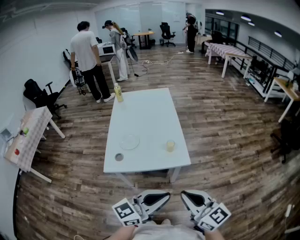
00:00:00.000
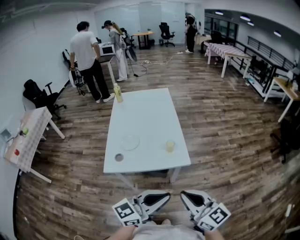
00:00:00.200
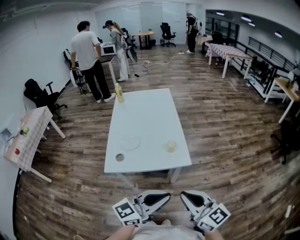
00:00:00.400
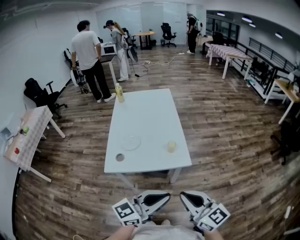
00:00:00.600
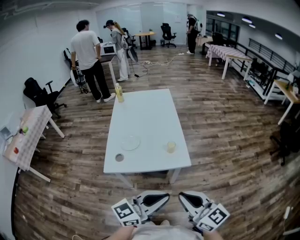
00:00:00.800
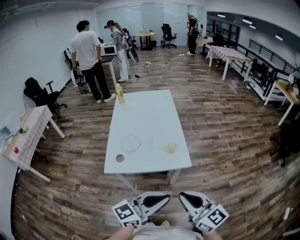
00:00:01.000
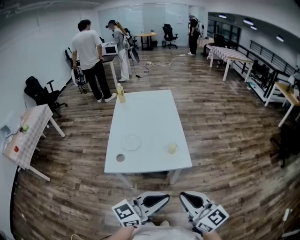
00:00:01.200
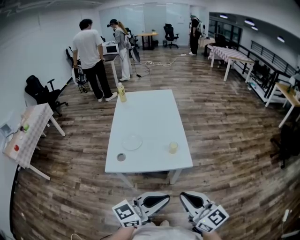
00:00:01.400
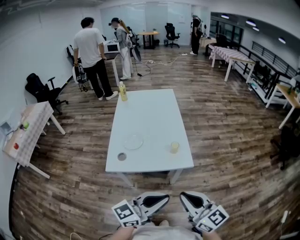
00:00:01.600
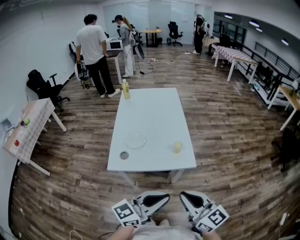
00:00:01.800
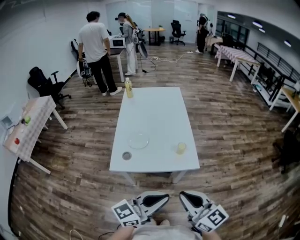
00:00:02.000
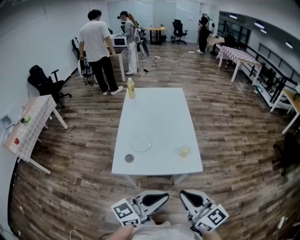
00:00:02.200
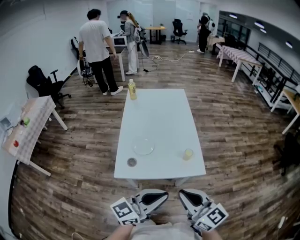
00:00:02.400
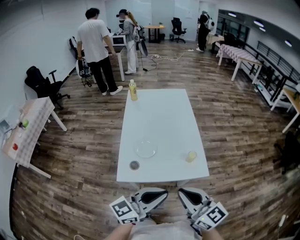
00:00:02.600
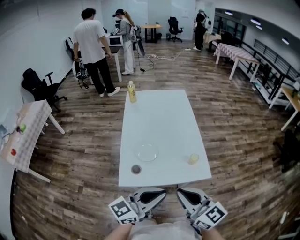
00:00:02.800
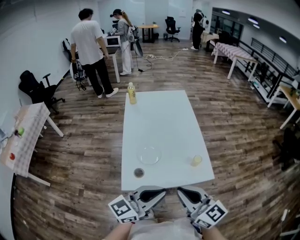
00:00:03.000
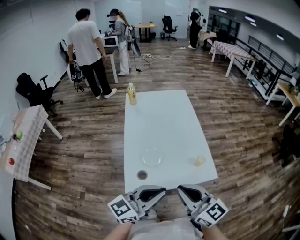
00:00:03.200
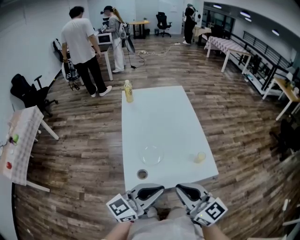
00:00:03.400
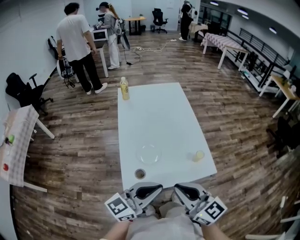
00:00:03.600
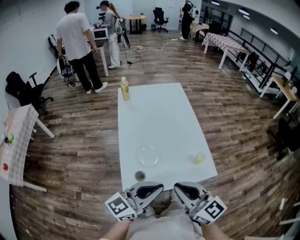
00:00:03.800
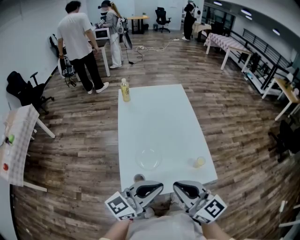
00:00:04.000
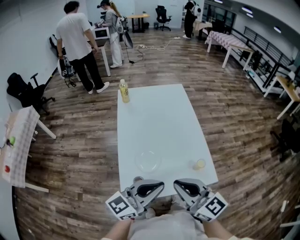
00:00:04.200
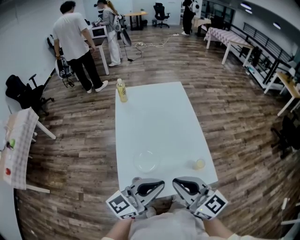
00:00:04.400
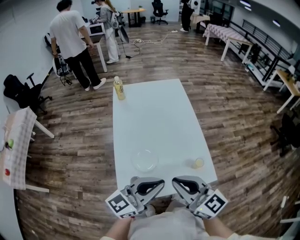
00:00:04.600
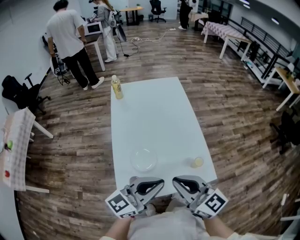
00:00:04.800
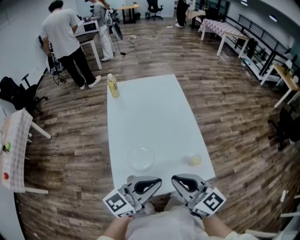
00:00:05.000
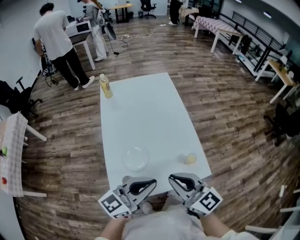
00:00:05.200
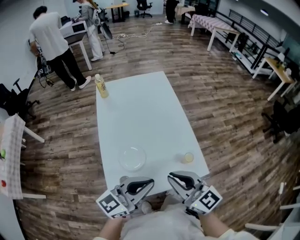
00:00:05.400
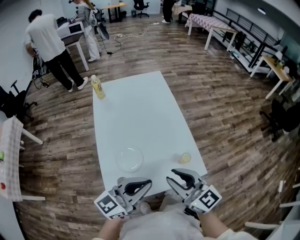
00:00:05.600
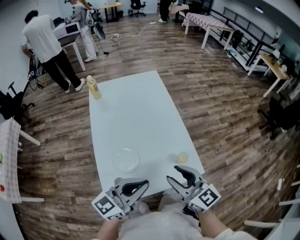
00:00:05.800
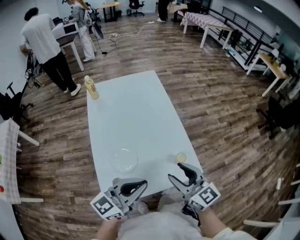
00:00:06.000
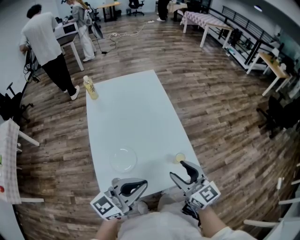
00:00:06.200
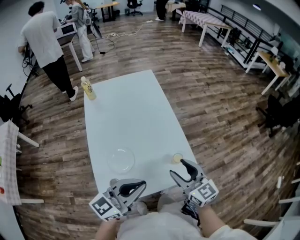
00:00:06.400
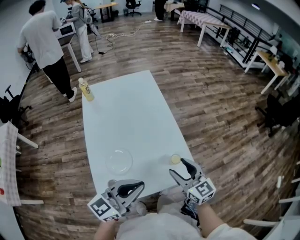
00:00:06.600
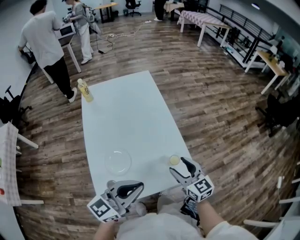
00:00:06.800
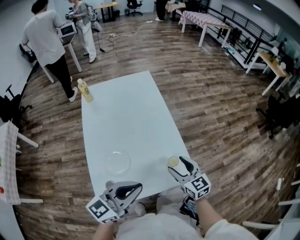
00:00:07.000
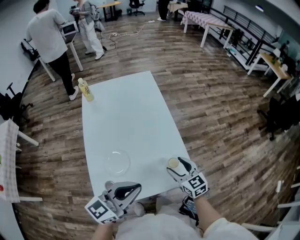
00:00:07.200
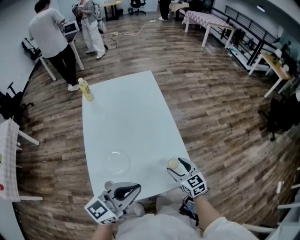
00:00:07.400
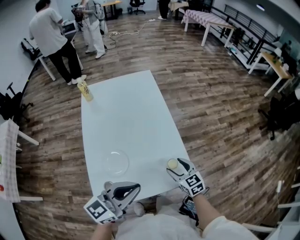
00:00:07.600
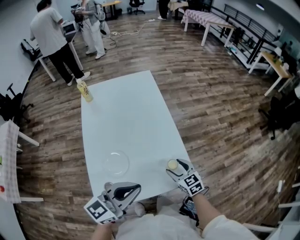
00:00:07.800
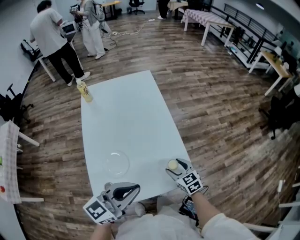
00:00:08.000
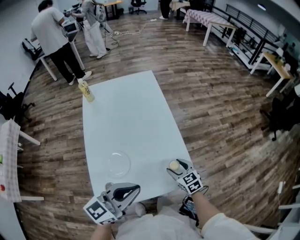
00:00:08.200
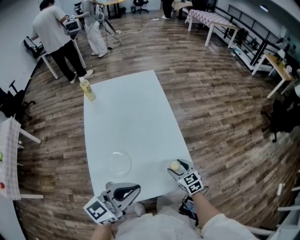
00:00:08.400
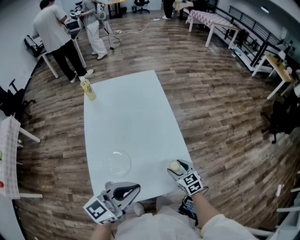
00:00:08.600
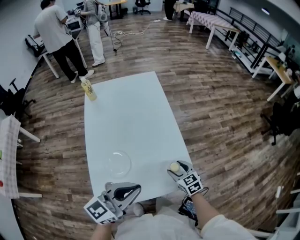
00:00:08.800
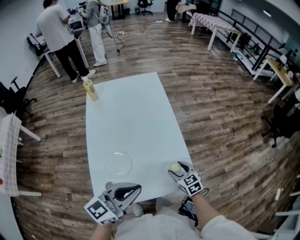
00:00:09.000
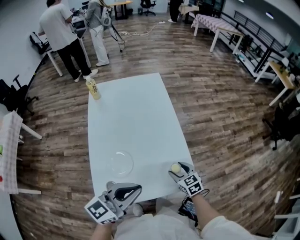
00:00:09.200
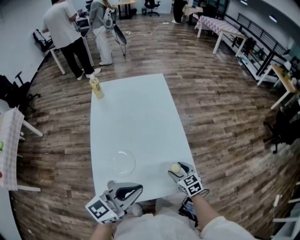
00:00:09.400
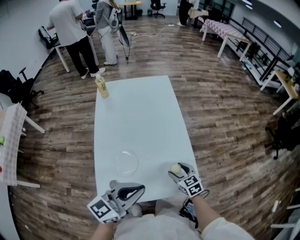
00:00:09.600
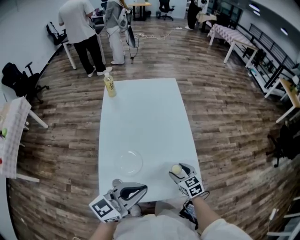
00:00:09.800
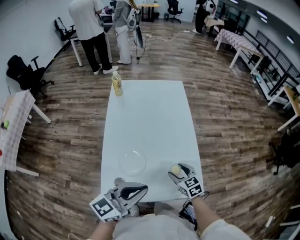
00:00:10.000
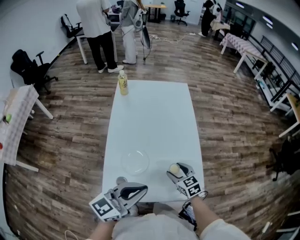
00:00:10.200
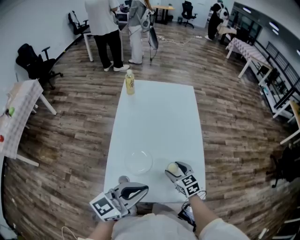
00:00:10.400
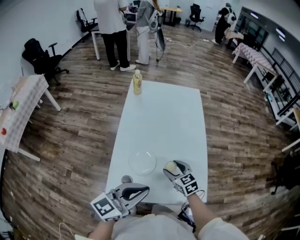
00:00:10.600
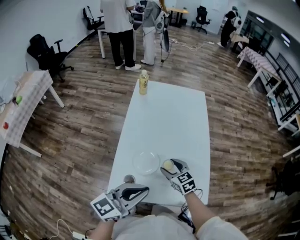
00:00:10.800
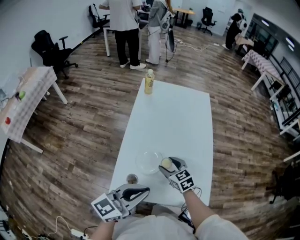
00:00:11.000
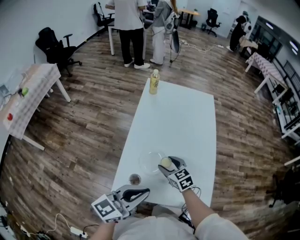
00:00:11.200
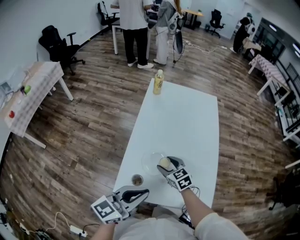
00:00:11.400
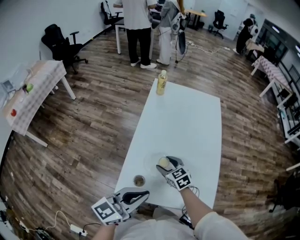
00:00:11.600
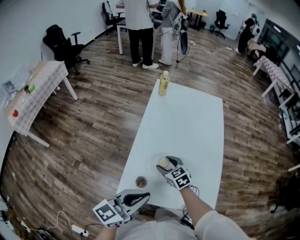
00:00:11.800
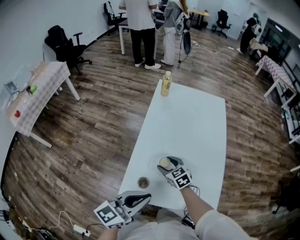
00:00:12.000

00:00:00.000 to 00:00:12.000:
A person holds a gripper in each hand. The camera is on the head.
00:00:00.000 to 00:00:01.600: The grippers move only a little.
00:00:01.600 to 00:00:03.000: The grippers both shift to the left and forward by roughly 20 cm.
00:00:03.000 to 00:00:04.400: The grippers both shift forward by roughly 10 cm.
00:00:04.400 to 00:00:06.000: The right gripper is displaced to the right, downward and forward by about 10 cm, and opens.
00:00:06.000 to 00:00:07.600: The right gripper heads downward and forward, covering about 20 cm, and turns by approximately 20 degrees.
00:00:07.600 to 00:00:09.000: The grippers make only small movements.
00:00:09.000 to 00:00:10.400: The right gripper shifts some 10 cm to the left.
00:00:10.400 to 00:00:12.000: The right gripper is displaced to the left by roughly 20 cm; the left gripper goes some 10 cm to the left.

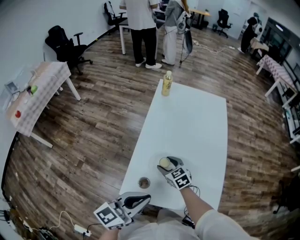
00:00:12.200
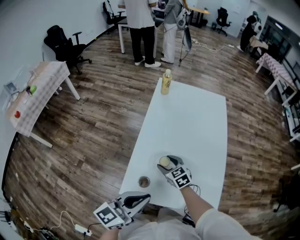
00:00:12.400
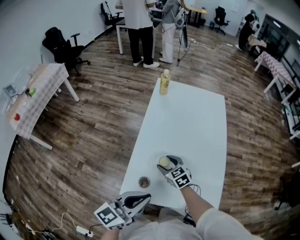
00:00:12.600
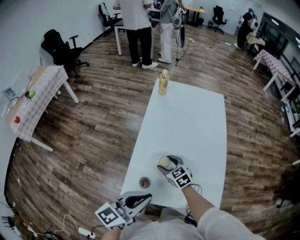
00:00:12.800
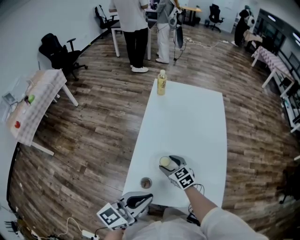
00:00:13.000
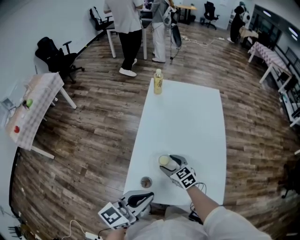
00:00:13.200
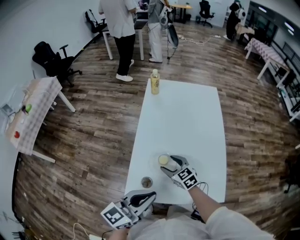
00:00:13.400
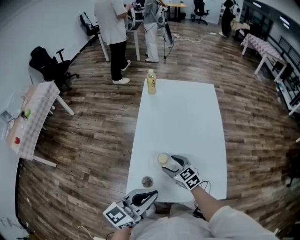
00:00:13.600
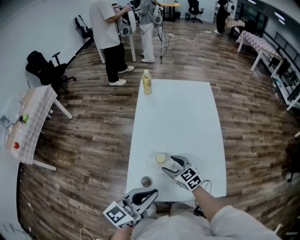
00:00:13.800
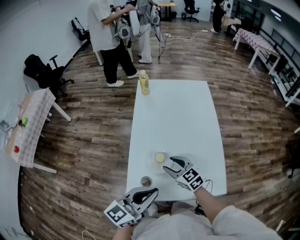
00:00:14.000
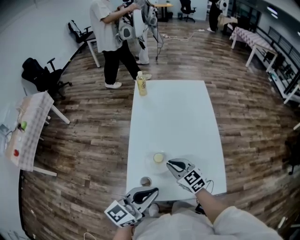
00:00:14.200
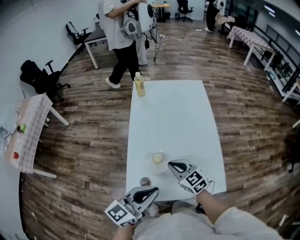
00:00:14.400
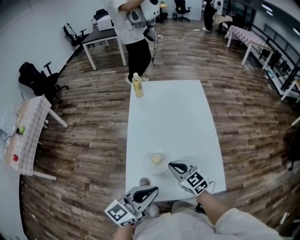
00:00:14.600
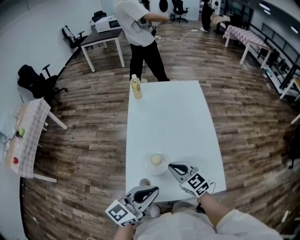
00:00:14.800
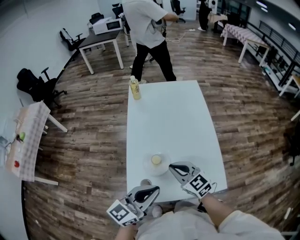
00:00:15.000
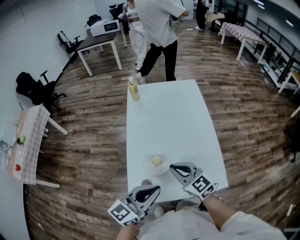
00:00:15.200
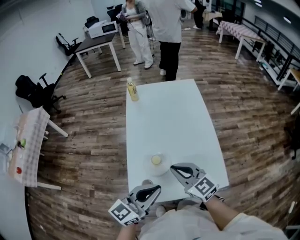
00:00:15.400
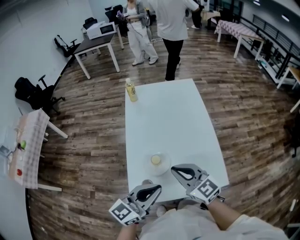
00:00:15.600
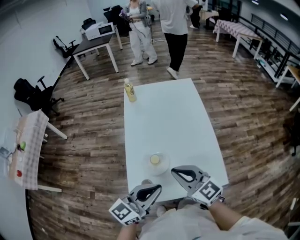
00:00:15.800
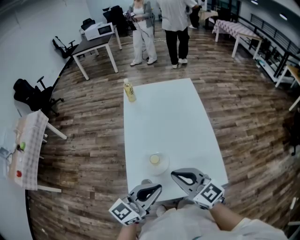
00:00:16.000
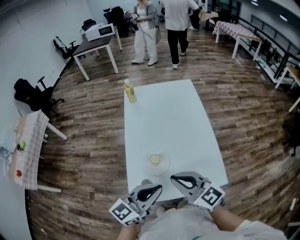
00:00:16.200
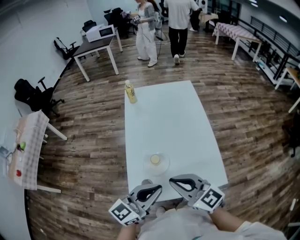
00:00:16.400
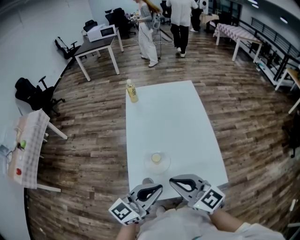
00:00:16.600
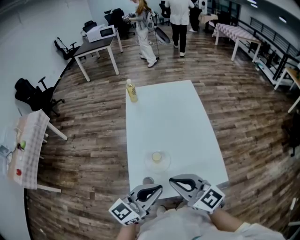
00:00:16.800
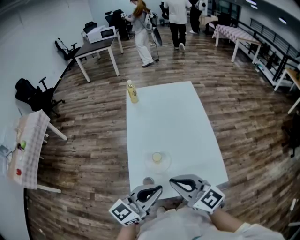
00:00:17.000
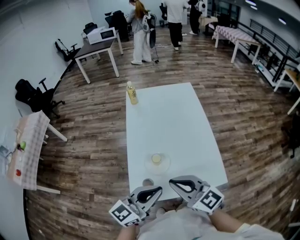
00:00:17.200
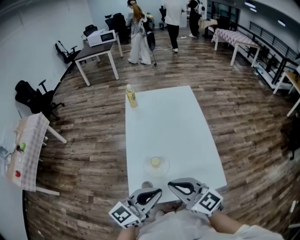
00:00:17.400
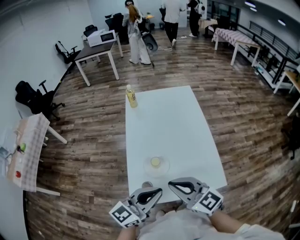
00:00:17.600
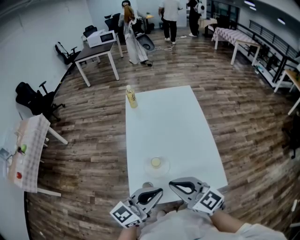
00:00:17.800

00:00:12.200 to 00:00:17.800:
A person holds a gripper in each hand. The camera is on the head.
00:00:12.200 to 00:00:13.600: The right gripper shifts by about 5 cm.
00:00:13.600 to 00:00:15.000: The right gripper travels upward by approximately 10 cm, and closes.
00:00:15.000 to 00:00:16.400: The right gripper heads upward and backward, covering roughly 15 cm.
00:00:16.400 to 00:00:17.800: The grippers make only small movements.

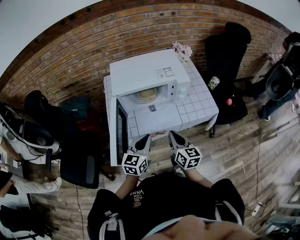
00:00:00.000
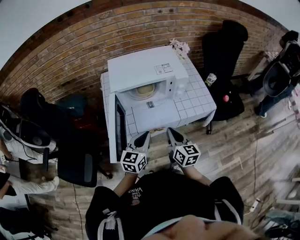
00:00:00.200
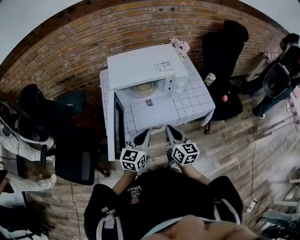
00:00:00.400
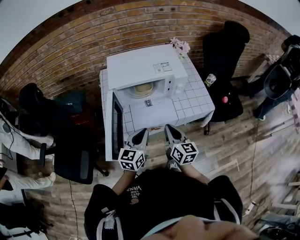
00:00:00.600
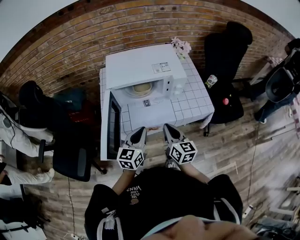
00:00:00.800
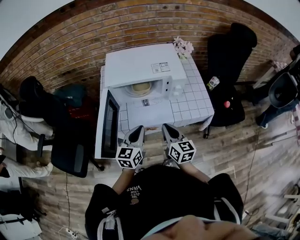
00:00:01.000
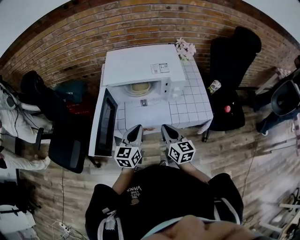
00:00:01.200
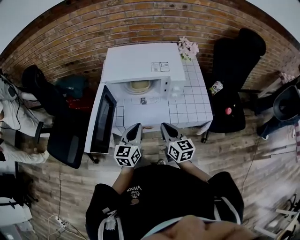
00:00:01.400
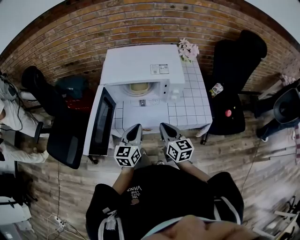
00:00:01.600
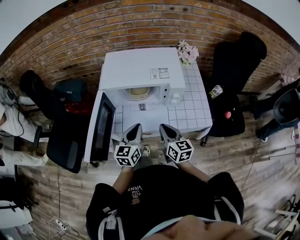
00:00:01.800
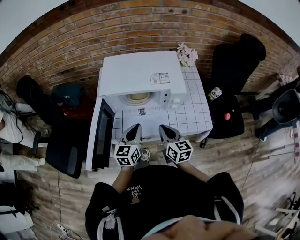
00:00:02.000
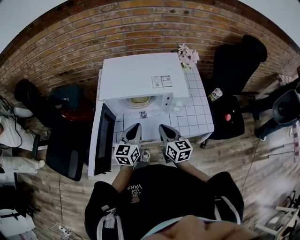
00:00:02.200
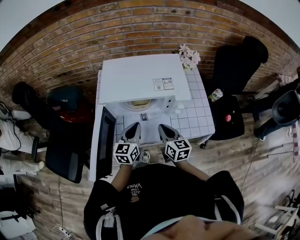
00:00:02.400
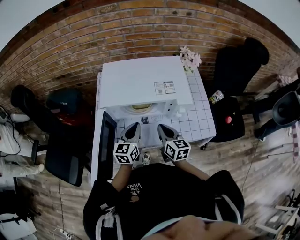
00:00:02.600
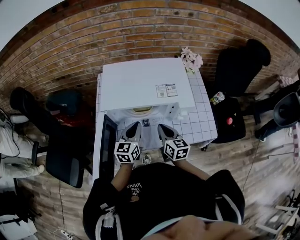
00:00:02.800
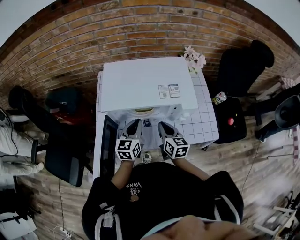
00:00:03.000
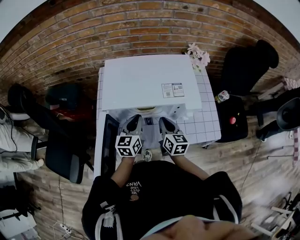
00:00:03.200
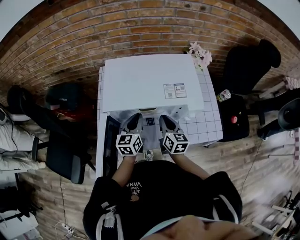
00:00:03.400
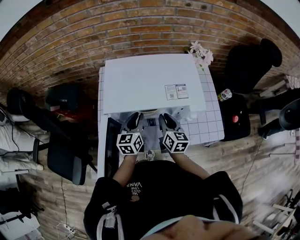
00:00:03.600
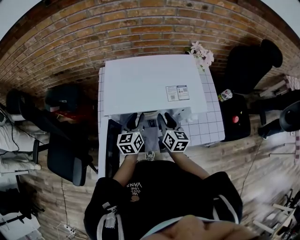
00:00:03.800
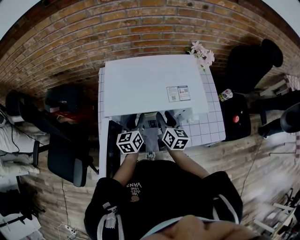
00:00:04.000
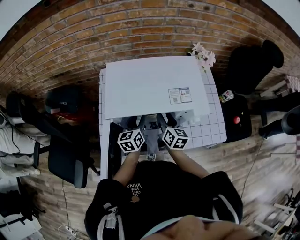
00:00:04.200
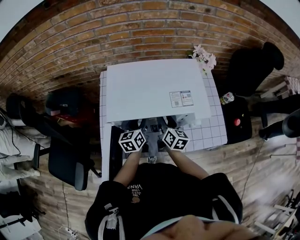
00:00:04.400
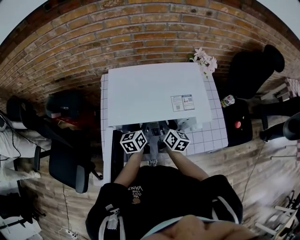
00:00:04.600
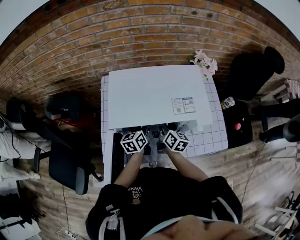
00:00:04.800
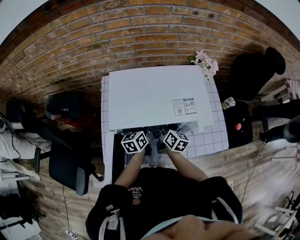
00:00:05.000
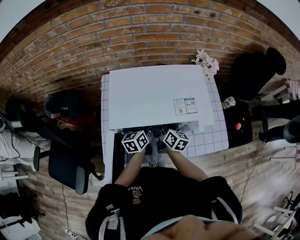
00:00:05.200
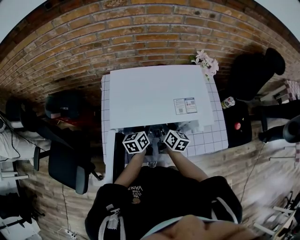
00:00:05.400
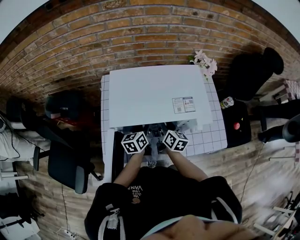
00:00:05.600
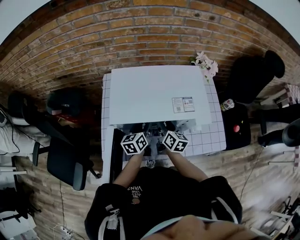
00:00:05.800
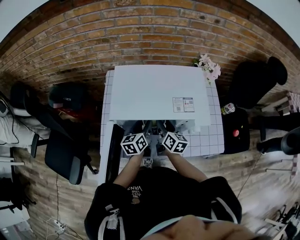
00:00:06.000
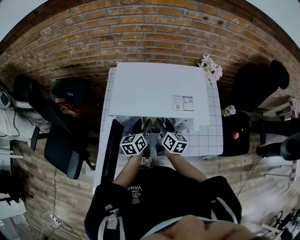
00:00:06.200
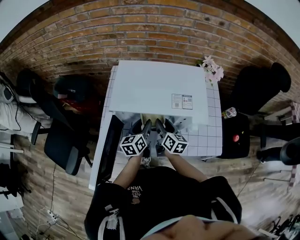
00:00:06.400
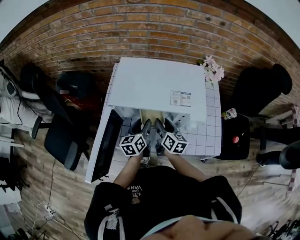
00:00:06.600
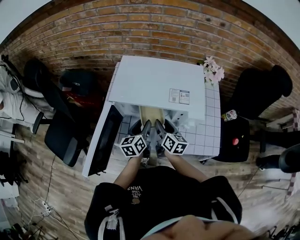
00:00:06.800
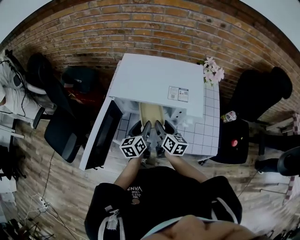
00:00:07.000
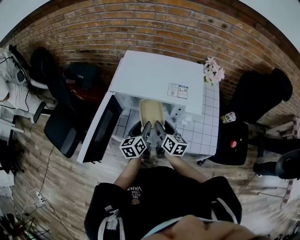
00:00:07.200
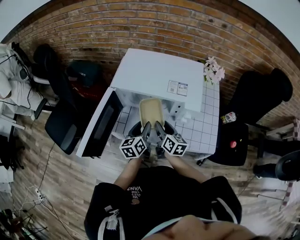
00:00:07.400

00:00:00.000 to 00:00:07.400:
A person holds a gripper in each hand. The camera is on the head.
00:00:00.000 to 00:00:01.400: The left gripper moves roughly 5 cm. The right gripper ends up roughly 5 cm from where it was.
00:00:01.400 to 00:00:03.000: The two grippers go about 20 cm forward.
00:00:03.000 to 00:00:04.400: The left gripper is displaced forward and downward by roughly 10 cm, and opens. Meanwhile the right gripper goes approximately 10 cm forward, and opens its fingers.
00:00:04.400 to 00:00:06.000: The grippers stay close to where they were, moving slightly.
00:00:06.000 to 00:00:07.400: The grippers both shift backward by roughly 15 cm.
